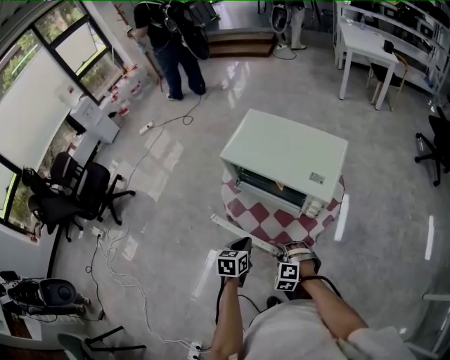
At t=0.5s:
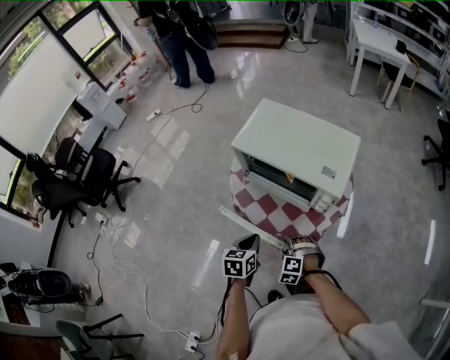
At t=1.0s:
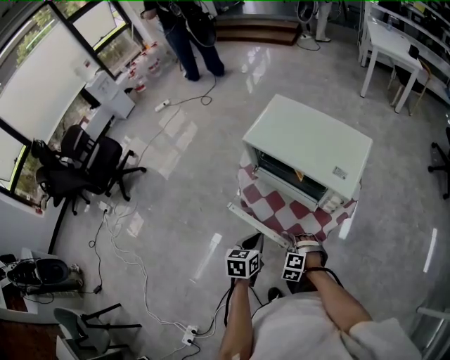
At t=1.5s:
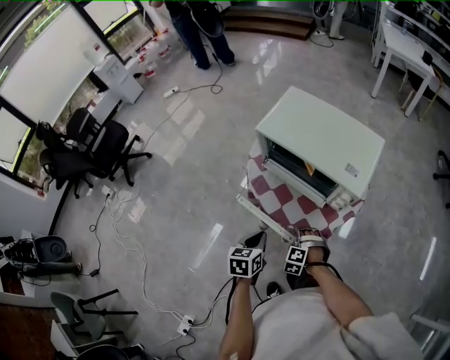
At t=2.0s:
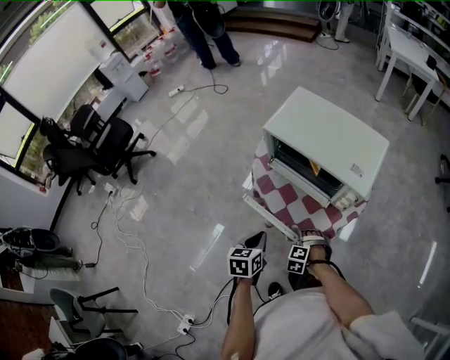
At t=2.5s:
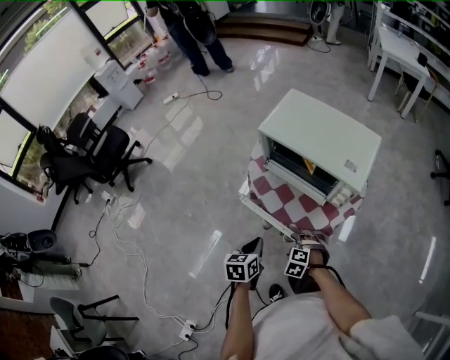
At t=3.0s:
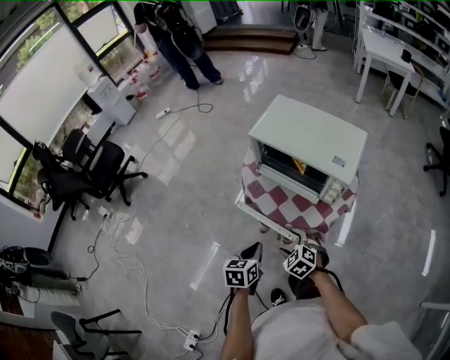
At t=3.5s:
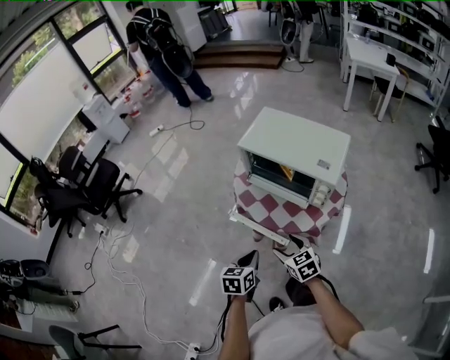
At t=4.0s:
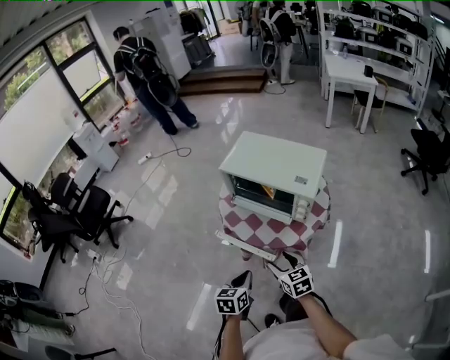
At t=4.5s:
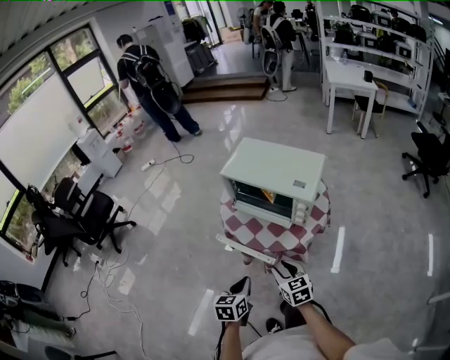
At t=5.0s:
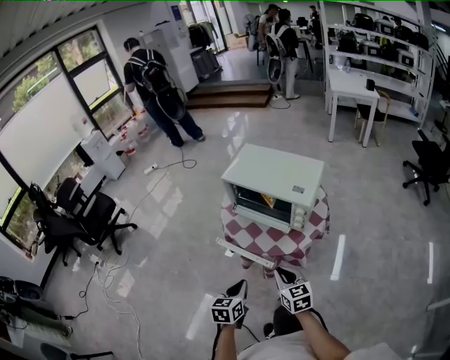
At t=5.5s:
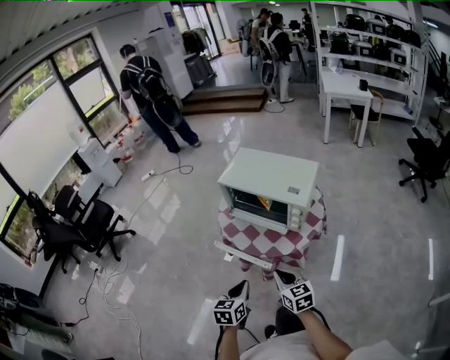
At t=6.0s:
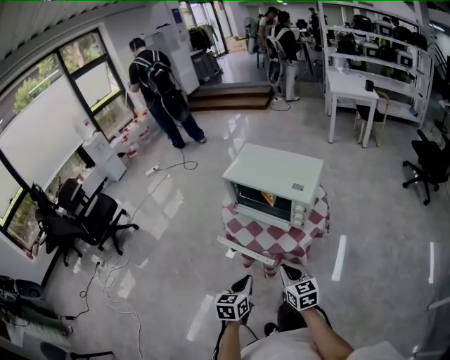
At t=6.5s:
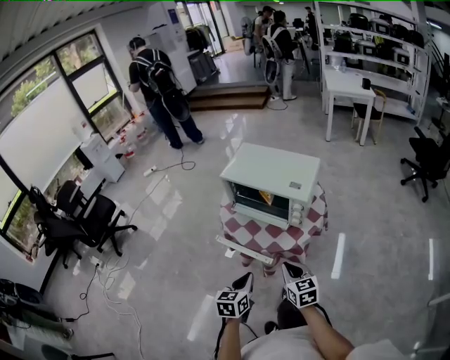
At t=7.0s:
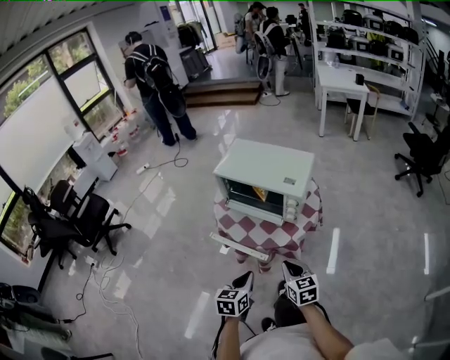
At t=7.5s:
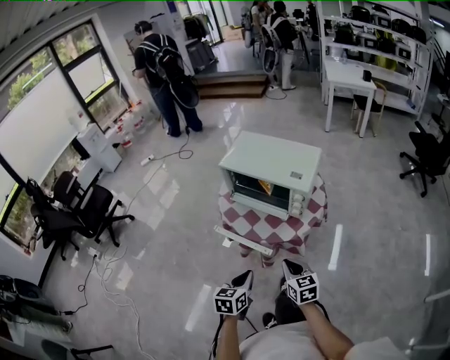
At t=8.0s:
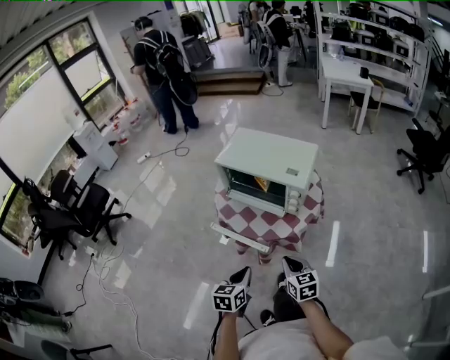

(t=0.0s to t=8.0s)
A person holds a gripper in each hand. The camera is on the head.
t=0.0s - t=2.0s: The right gripper travels downward by about 10 cm, and opens up. The left gripper shifts by approximately 5 cm.
t=2.0s - t=4.0s: The left gripper shifts by about 10 cm; the right gripper travels upward by roughly 20 cm, and rotates around the line of its fingers by roughly 70 degrees, clockwise from behind.
t=4.0s - t=6.0s: The left gripper ends up some 5 cm from where it was. Meanwhile the right gripper shifts about 5 cm upward, and closes up.
t=6.0s - t=8.0s: There are only small adjustments of the grippers.

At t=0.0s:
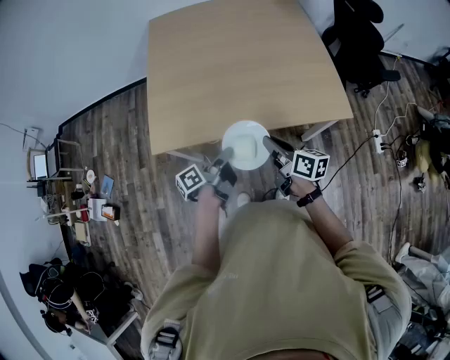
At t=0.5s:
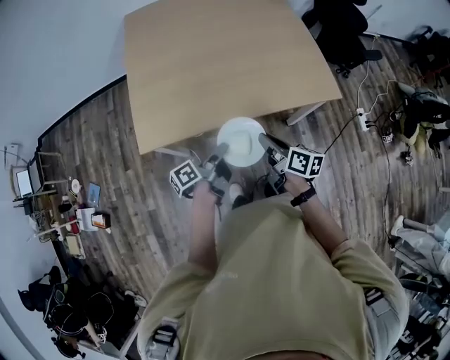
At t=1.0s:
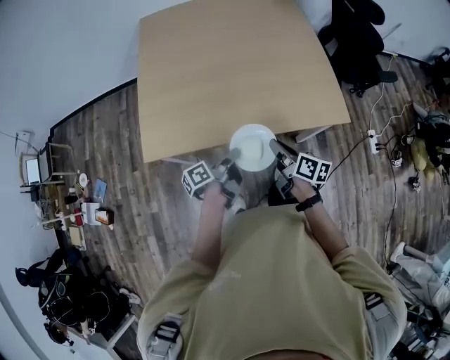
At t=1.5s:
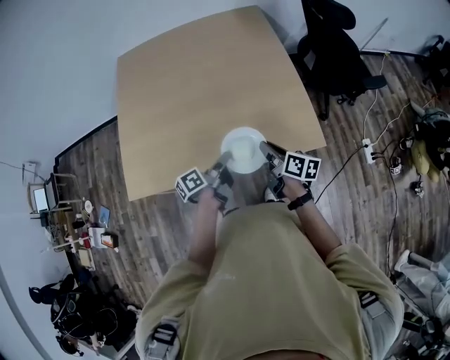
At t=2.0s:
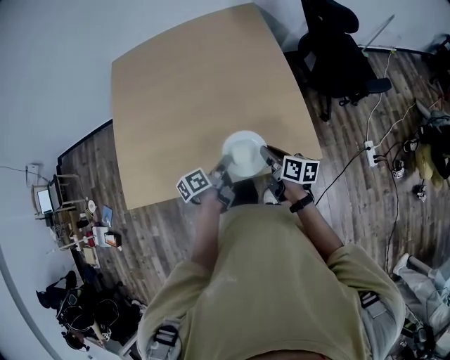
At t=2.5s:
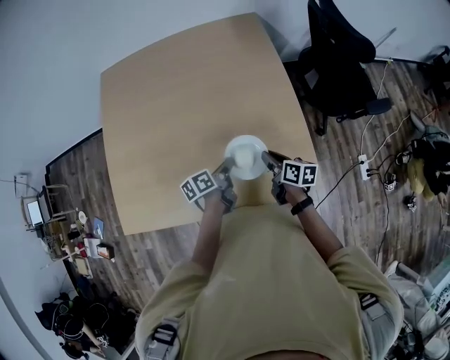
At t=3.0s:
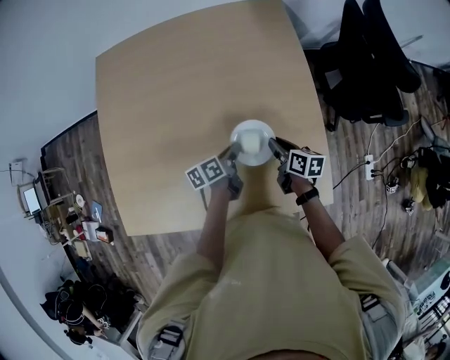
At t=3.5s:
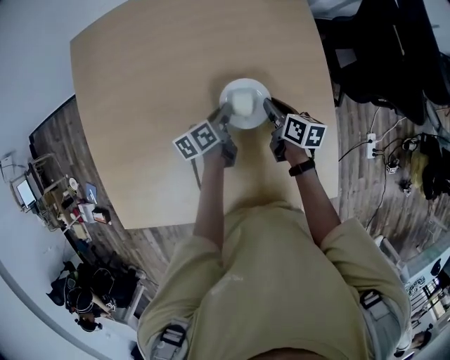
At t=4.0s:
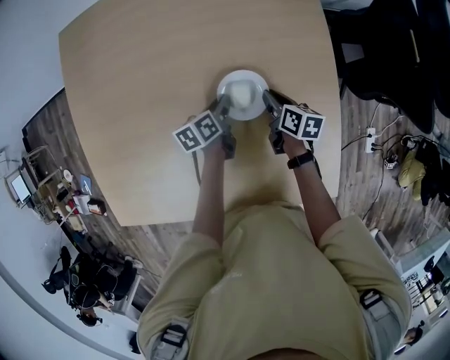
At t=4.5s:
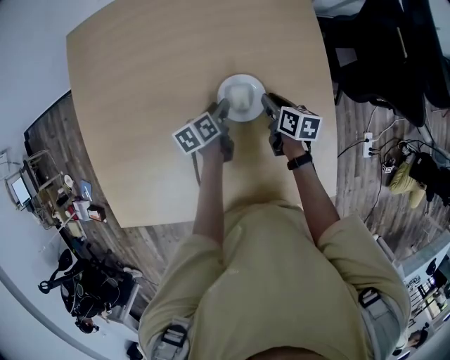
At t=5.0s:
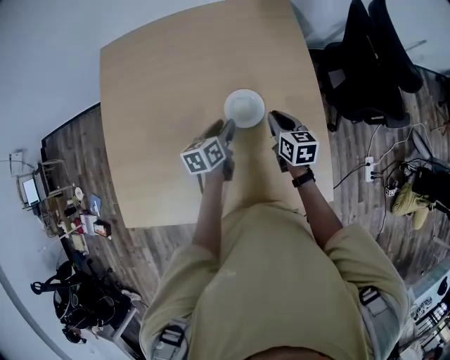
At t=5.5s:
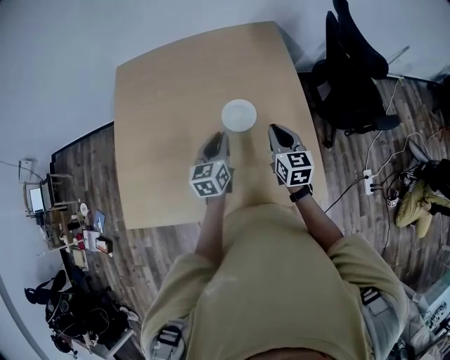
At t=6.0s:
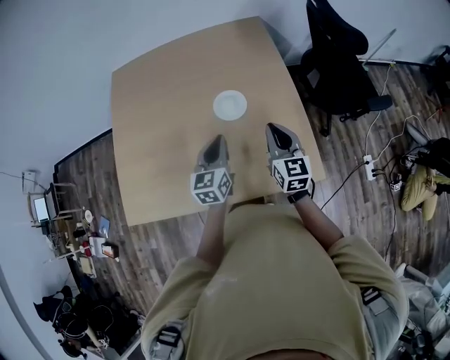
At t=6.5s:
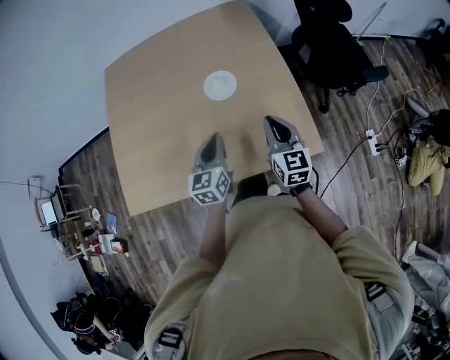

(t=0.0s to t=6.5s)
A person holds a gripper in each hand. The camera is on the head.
t=0.0s - t=2.0s: Both grippers move forward and to the right, some 30 cm. The left gripper swivels roughly 20 degrees.
t=2.0s - t=4.5s: Both grippers move forward, roughly 35 cm. The left gripper turns by roughly 20 degrees, and opens up.
t=4.5s - t=6.5s: Both grippers travel together backward and upward, some 40 cm. The right gripper rotates roughly 50 degrees. The left gripper twists roughly 40 degrees clockwise, seen from behind, and closes.

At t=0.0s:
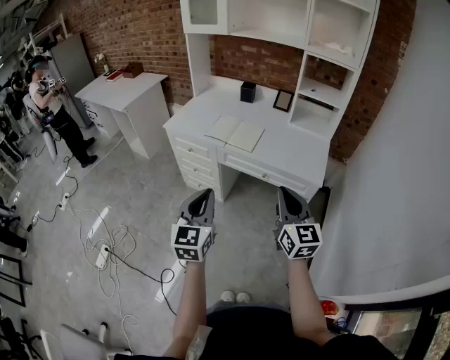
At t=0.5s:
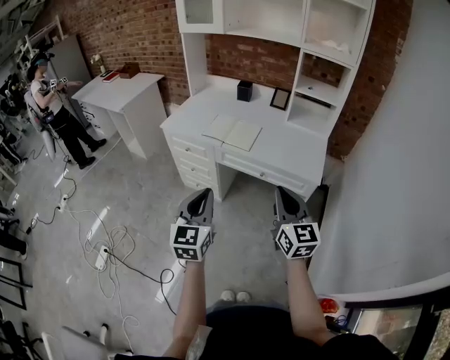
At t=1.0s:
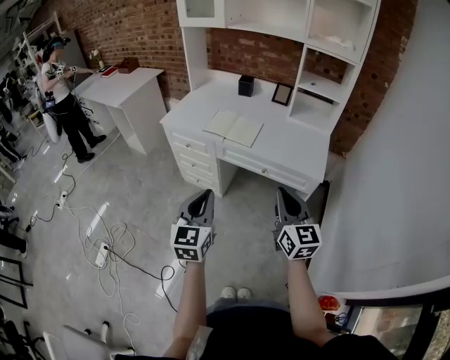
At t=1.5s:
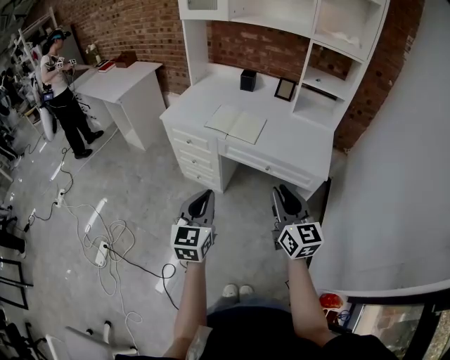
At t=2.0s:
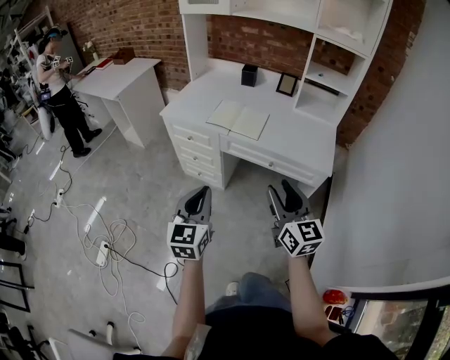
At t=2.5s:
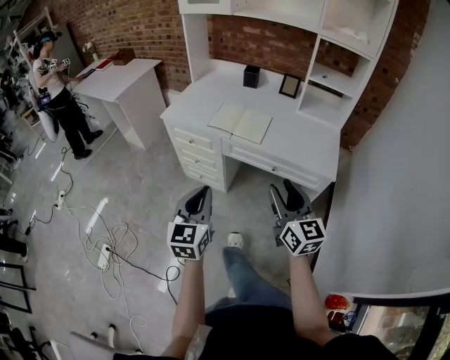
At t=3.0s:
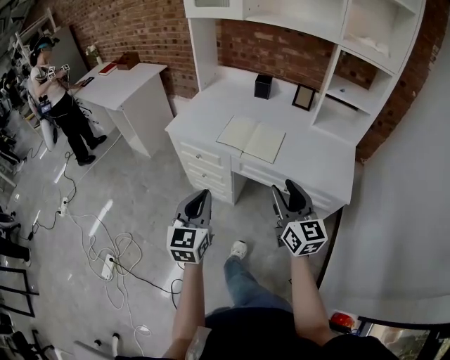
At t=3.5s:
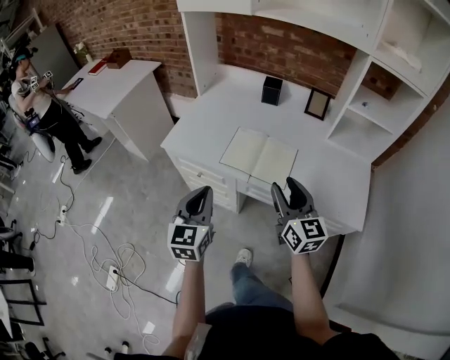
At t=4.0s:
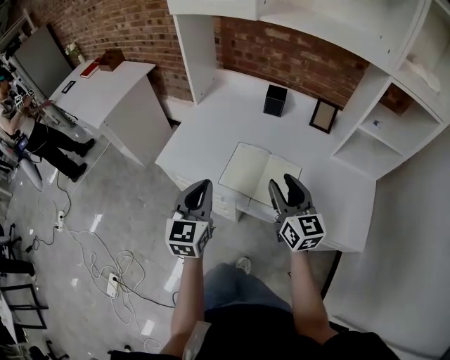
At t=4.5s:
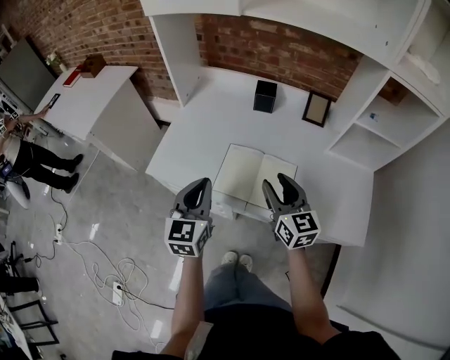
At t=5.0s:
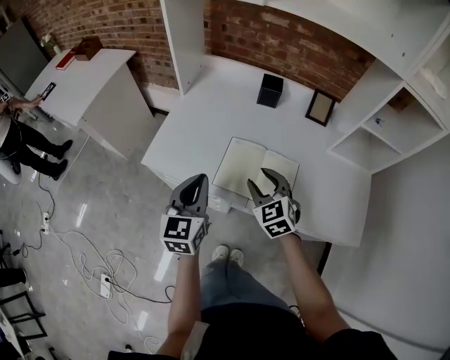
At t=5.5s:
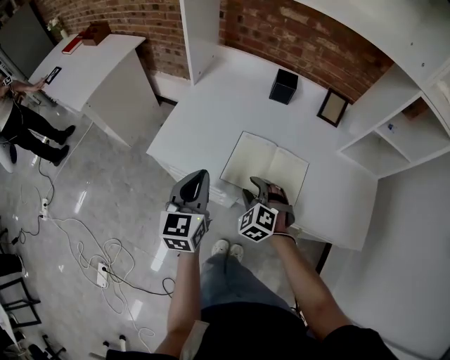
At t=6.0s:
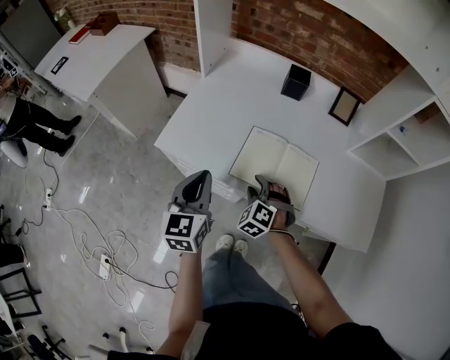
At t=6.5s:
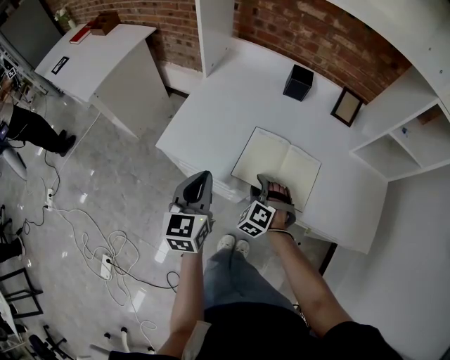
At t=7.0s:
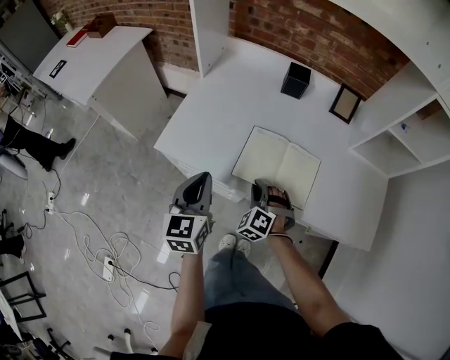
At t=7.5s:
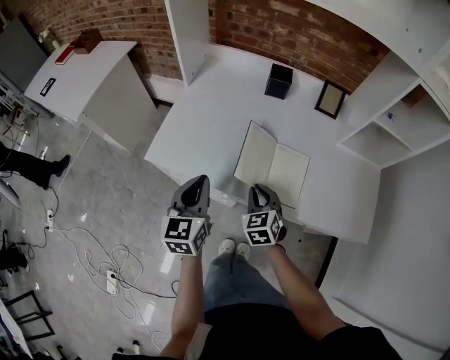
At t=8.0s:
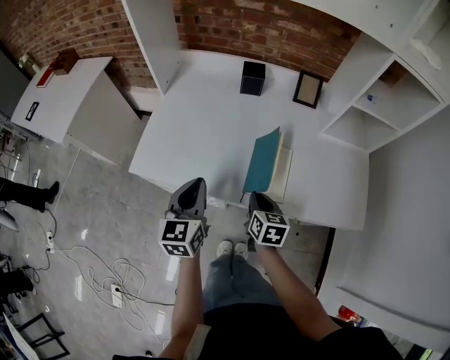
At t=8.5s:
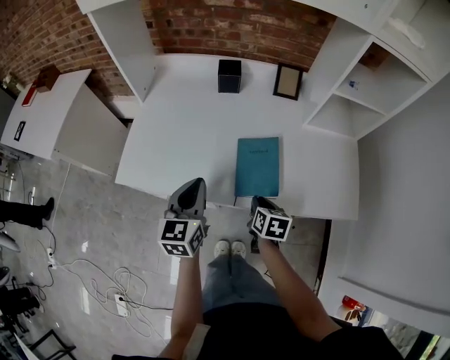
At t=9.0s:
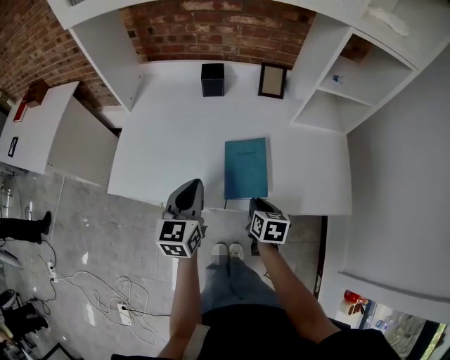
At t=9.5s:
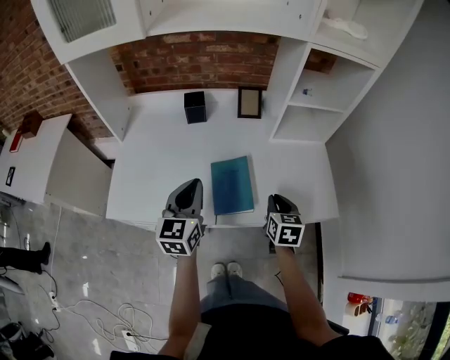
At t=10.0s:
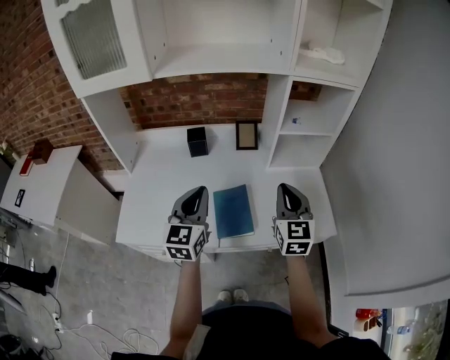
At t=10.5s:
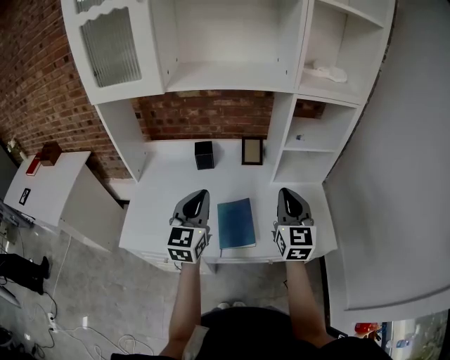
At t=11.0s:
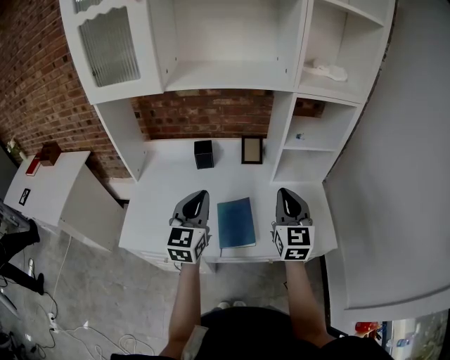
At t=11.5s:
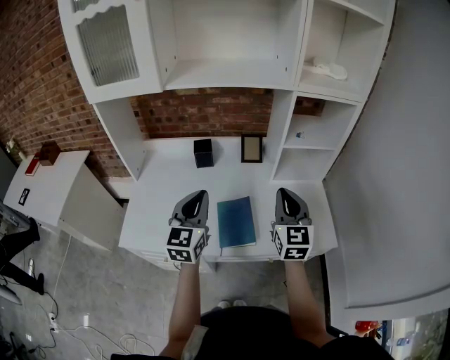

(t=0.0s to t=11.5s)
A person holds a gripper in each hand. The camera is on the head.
t=0.0s - t=2.0s: Both grippers move to the left, about 5 cm. The right gripper opens up.
t=2.0s - t=4.0s: Both grippers are carried forward, about 40 cm.
t=4.0s - t=6.0s: The left gripper travels downward and to the left by about 10 cm; the right gripper shifts about 25 cm downward and to the left, and points its fingers approximately 50 degrees further downward.
t=6.0s - t=7.5s: The right gripper moves roughly 5 cm, rotates about 40 degrees, and closes its fingers.
t=7.5s - t=9.5s: The right gripper shifts roughly 25 cm to the right, and swivels approximately 40 degrees, while the left gripper goes roughly 20 cm to the right and forward, and rotates some 20 degrees.
t=9.5s - t=11.5s: The right gripper shifts approximately 20 cm upward, and tilts its fingers roughly 30 degrees upward. Meanwhile the left gripper is displaced upward by some 10 cm.
